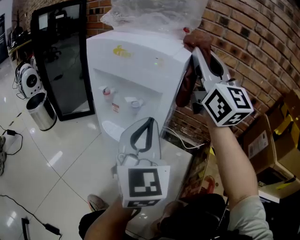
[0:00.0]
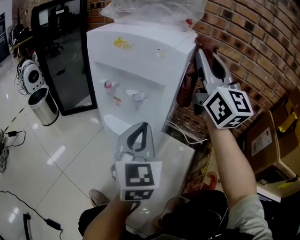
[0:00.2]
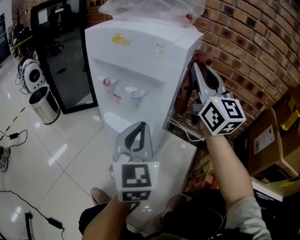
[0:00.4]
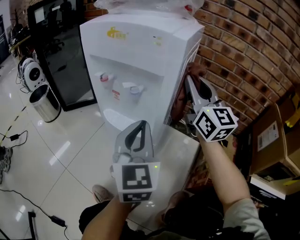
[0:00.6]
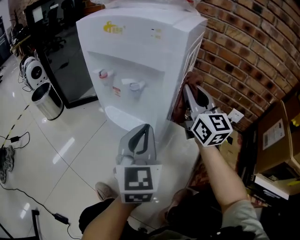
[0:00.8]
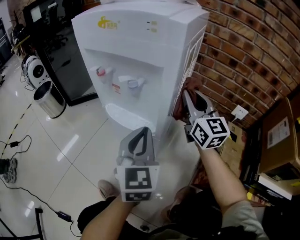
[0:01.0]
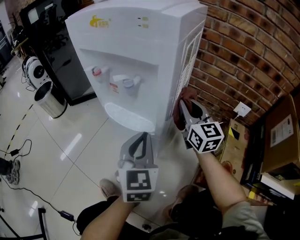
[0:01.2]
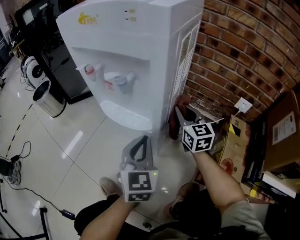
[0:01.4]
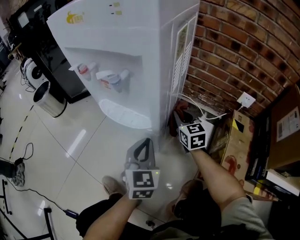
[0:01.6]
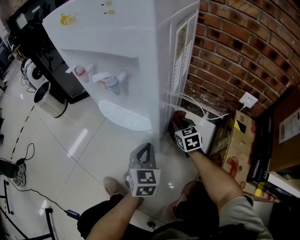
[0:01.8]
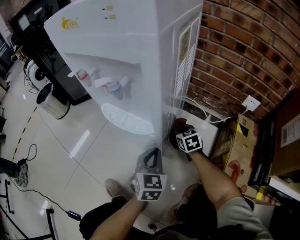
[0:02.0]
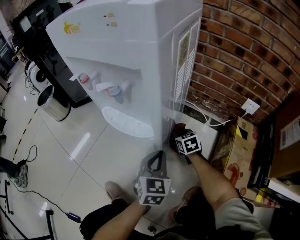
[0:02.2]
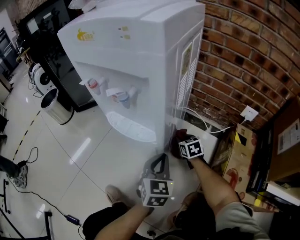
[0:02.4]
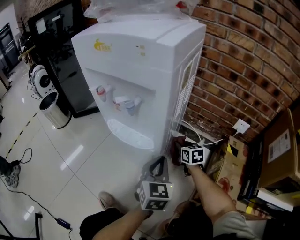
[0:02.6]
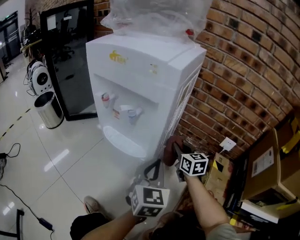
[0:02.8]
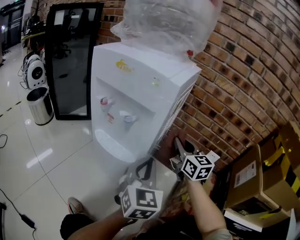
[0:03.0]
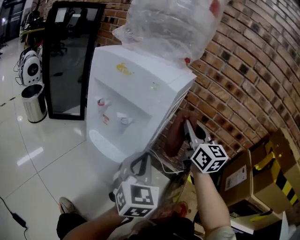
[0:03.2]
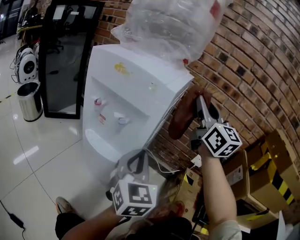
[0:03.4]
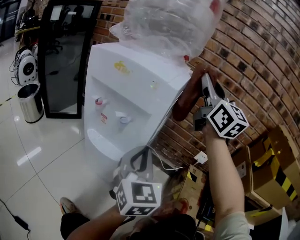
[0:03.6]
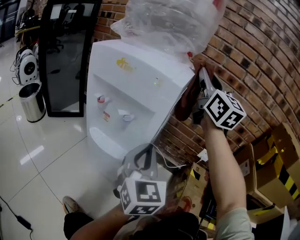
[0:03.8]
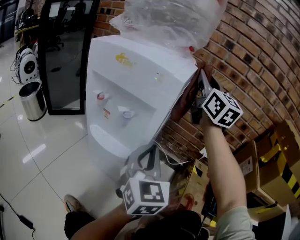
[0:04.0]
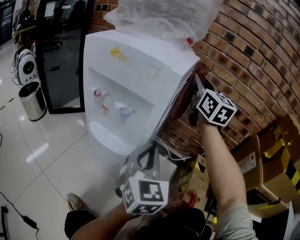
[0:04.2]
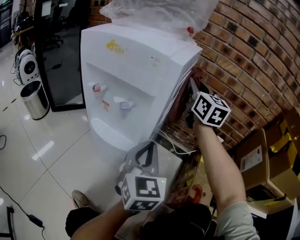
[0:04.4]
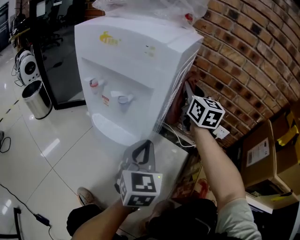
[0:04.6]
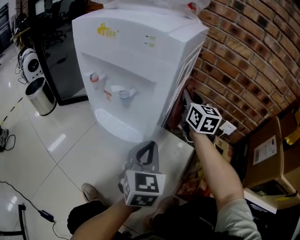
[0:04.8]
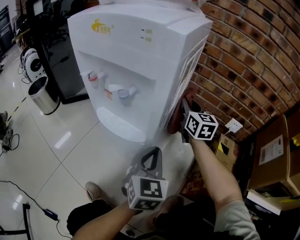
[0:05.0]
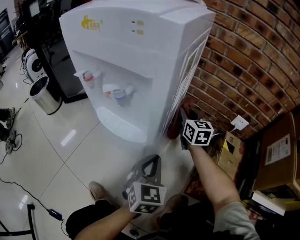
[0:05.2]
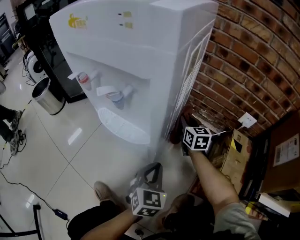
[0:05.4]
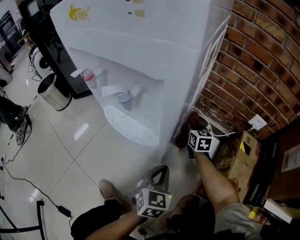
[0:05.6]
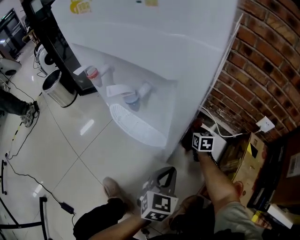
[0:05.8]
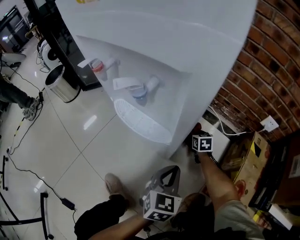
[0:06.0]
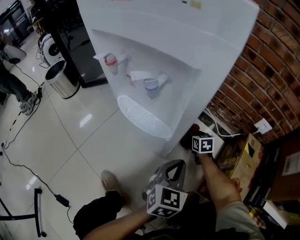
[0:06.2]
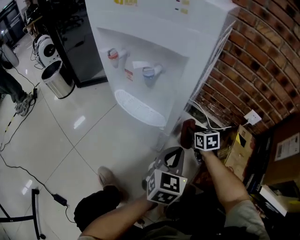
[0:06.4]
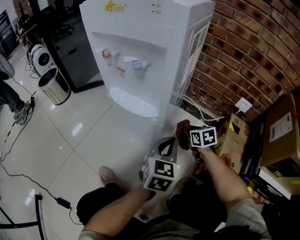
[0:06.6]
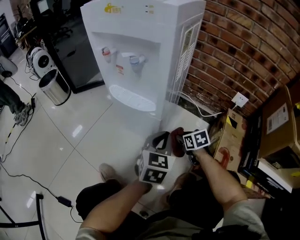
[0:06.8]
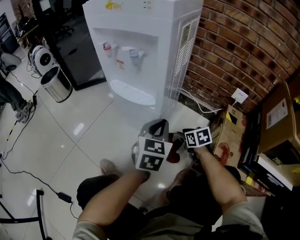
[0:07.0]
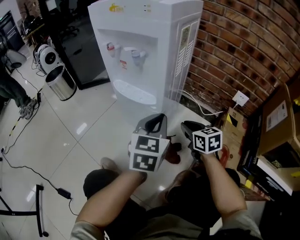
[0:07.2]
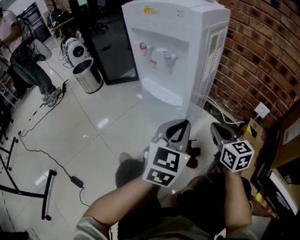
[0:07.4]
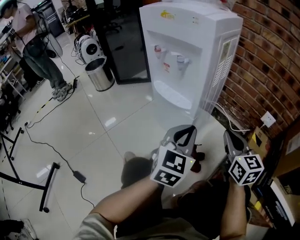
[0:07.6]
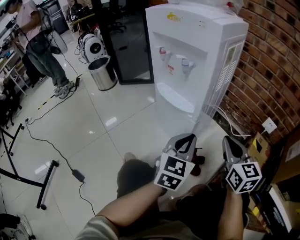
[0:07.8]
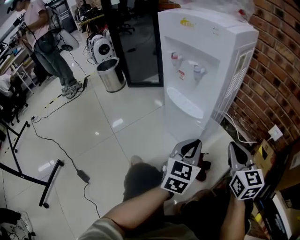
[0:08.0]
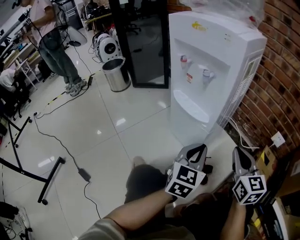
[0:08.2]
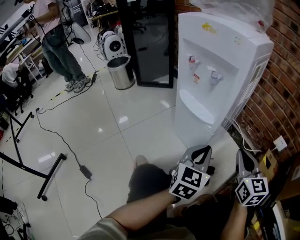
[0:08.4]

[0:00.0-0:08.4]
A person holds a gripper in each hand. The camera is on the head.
0.0 to 1.4 s: The right gripper travels downward by about 40 cm, and points its fingers some 40 degrees further downward, while the left gripper goes approximately 20 cm downward, and rotates roughly 20 degrees.
1.4 to 2.8 s: The right gripper travels downward and back again, some 20 cm each way; the left gripper moves to the right, approximately 5 cm, and moves approximately 10 cm downward and comes back.
2.8 to 4.2 s: The left gripper travels upward by roughly 10 cm. Meanwhile the right gripper travels upward by approximately 35 cm, and swivels about 30 degrees.
4.2 to 5.6 s: The right gripper moves downward, roughly 50 cm, and tips its fingers downward by some 40 degrees; the left gripper heads downward, covering some 25 cm, and swivels approximately 30 degrees.
5.6 to 7.0 s: The right gripper travels backward by about 20 cm, turns by roughly 30 degrees, and opens its fingers; the left gripper goes roughly 10 cm upward.
7.0 to 8.4 s: The left gripper travels backward by approximately 5 cm; the right gripper shifts approximately 25 cm upward, tips its fingers upward by some 40 degrees, and closes its fingers.

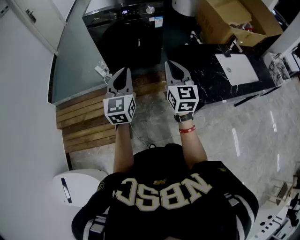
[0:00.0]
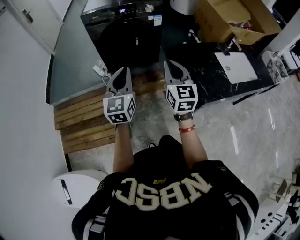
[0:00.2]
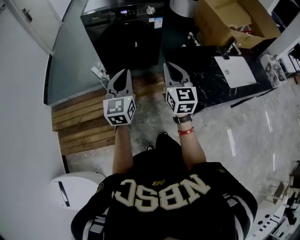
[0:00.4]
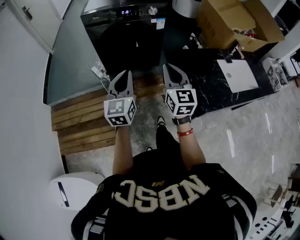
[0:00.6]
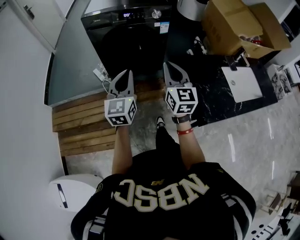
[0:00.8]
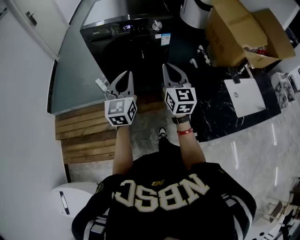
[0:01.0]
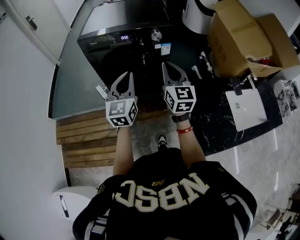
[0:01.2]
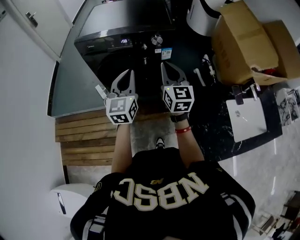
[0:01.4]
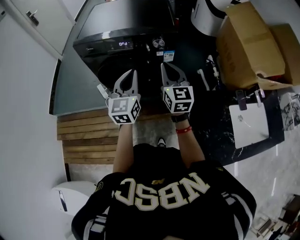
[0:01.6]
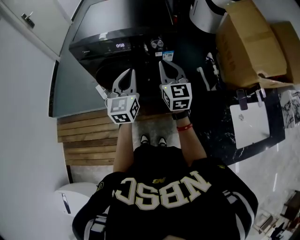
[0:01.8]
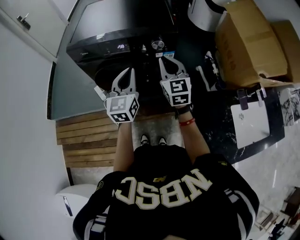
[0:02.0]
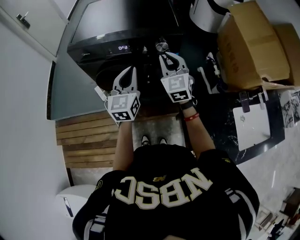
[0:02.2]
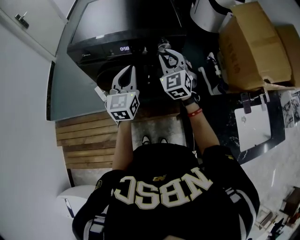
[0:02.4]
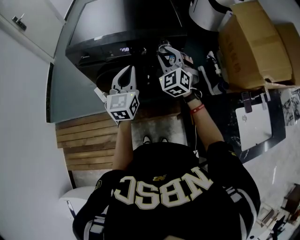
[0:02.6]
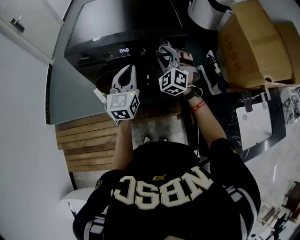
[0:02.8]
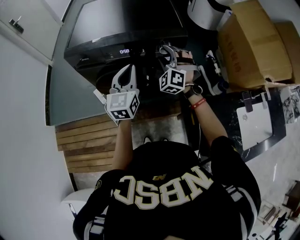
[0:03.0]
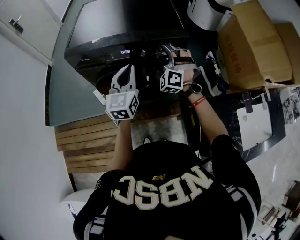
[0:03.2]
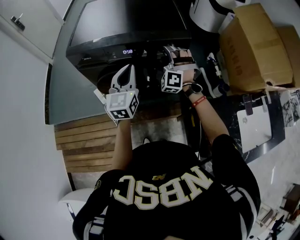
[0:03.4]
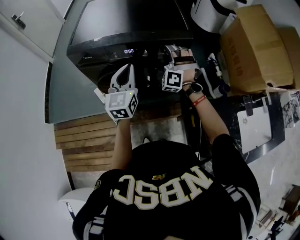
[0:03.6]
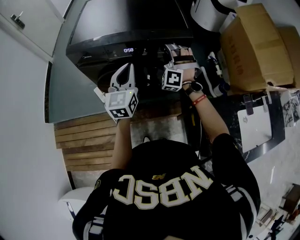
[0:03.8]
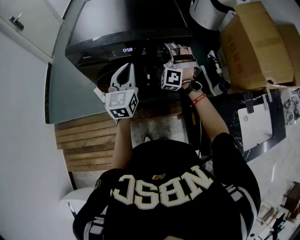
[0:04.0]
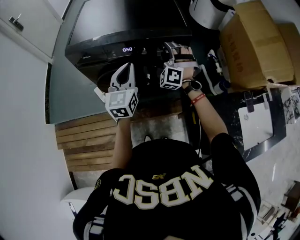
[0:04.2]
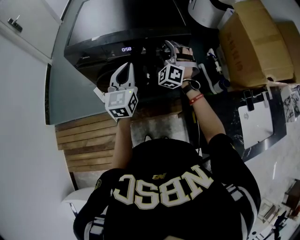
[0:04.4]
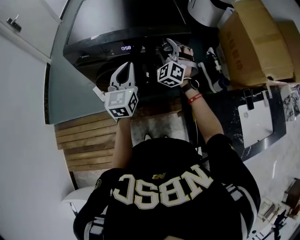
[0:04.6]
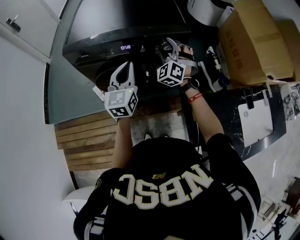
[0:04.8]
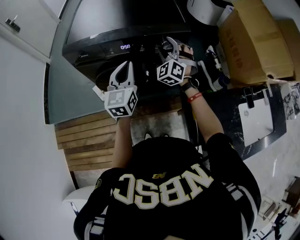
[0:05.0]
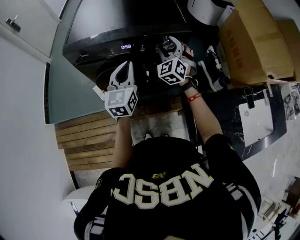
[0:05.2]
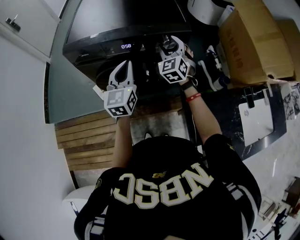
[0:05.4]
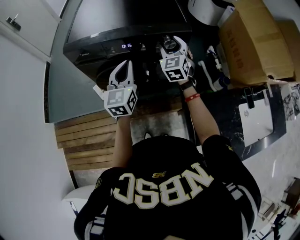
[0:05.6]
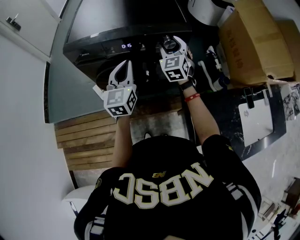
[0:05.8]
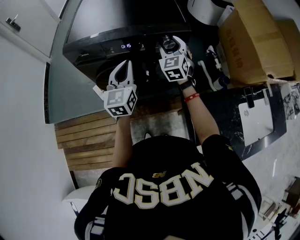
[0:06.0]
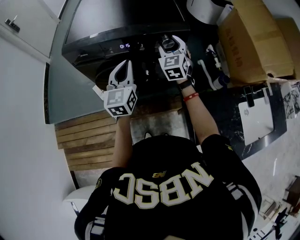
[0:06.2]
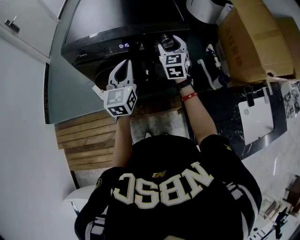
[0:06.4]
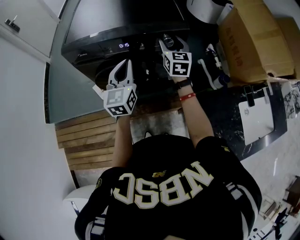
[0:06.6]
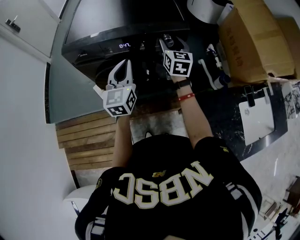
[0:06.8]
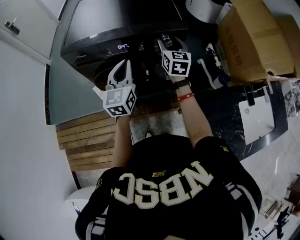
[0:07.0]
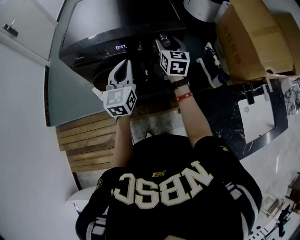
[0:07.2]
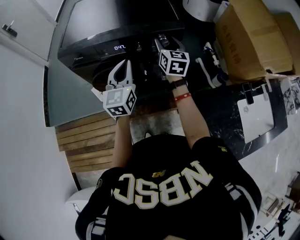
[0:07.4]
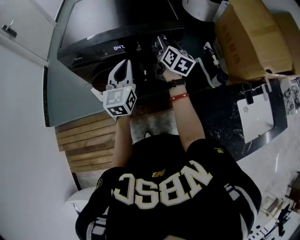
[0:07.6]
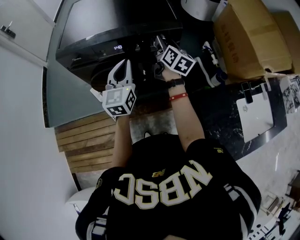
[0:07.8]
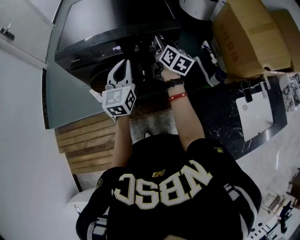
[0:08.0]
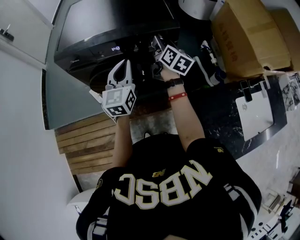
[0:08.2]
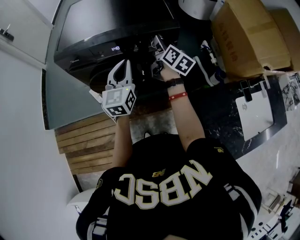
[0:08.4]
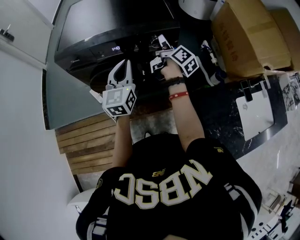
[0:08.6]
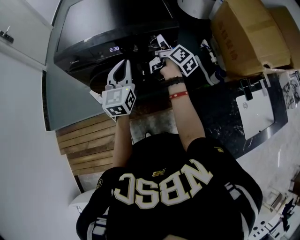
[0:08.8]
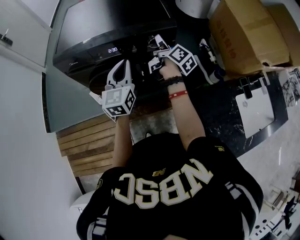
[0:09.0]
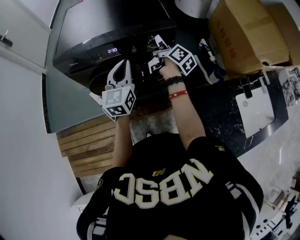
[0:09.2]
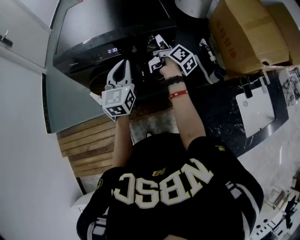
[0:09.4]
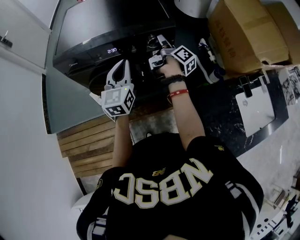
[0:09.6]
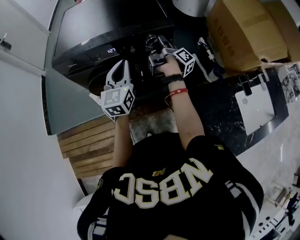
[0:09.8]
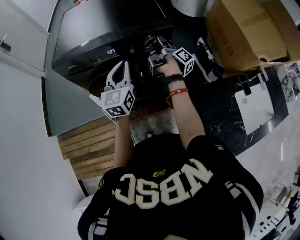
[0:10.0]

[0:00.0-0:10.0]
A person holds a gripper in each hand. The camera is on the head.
0.0 to 1.4 s: Both grippers move forward, some 30 cm.
1.4 to 2.8 s: The two grippers go some 15 cm forward. The right gripper rotates around the line of its fingers by roughly 60 degrees, counterclockwise from behind, and opens up.
2.8 to 4.2 s: The right gripper turns by about 20 degrees.
4.2 to 5.8 s: The right gripper twists about 50 degrees clockwise, seen from behind.
5.8 to 7.2 s: The right gripper rotates some 30 degrees.
7.2 to 8.6 s: The right gripper rolls clockwise, seen from behind, by roughly 60 degrees.
8.6 to 10.0 s: The right gripper rotates about 30 degrees.

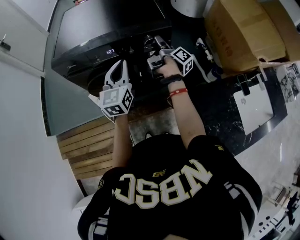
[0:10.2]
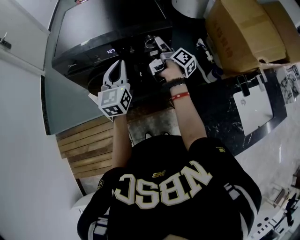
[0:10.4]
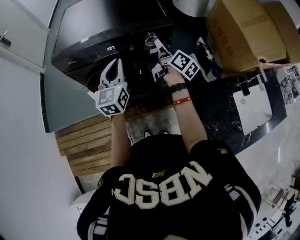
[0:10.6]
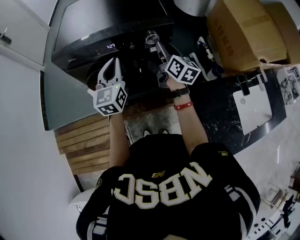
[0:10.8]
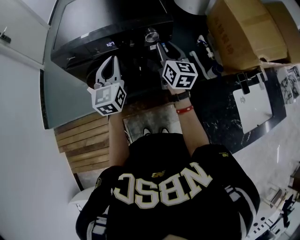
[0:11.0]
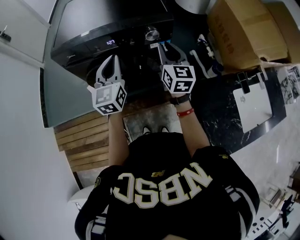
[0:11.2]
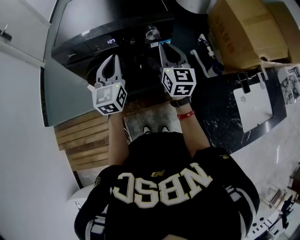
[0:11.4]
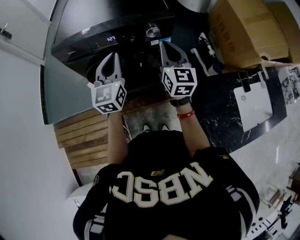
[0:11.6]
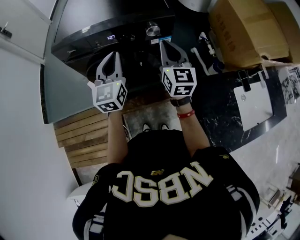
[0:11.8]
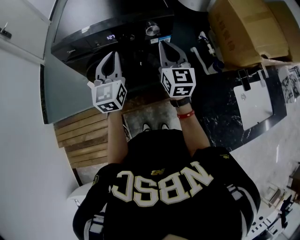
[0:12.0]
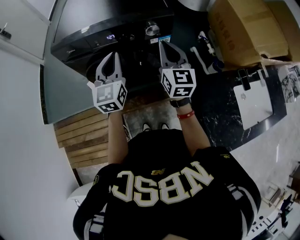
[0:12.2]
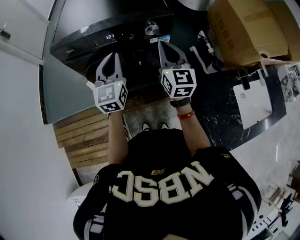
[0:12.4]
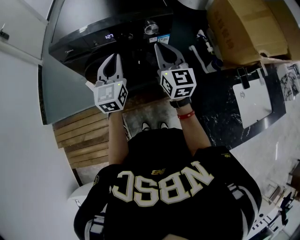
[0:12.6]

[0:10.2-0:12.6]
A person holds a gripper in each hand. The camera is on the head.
10.2 to 11.4 s: The right gripper goes approximately 15 cm backward and upward, rolls counterclockwise, seen from behind, by about 90 degrees, and closes.
11.4 to 12.6 s: The grippers stay close to where they were, moving slightly.

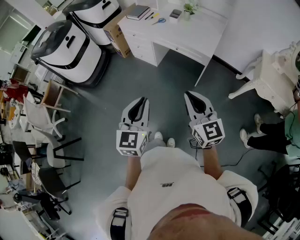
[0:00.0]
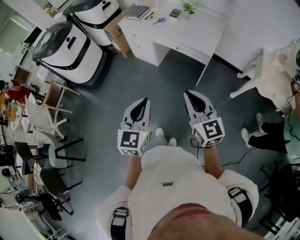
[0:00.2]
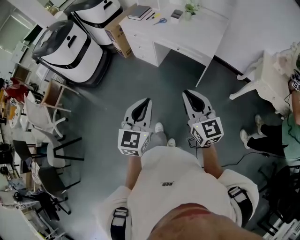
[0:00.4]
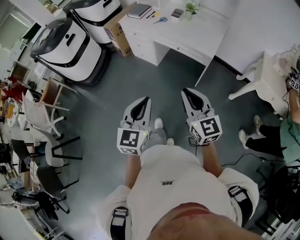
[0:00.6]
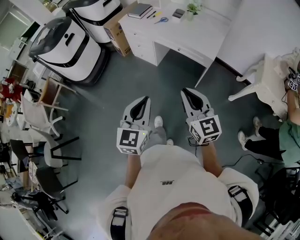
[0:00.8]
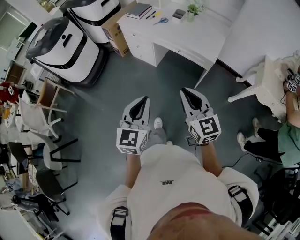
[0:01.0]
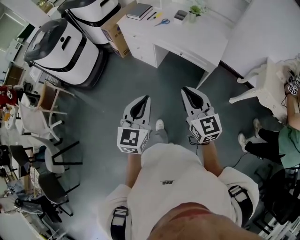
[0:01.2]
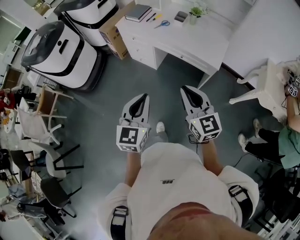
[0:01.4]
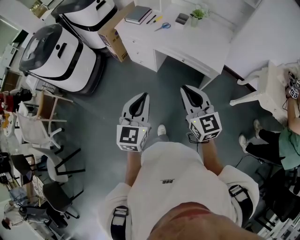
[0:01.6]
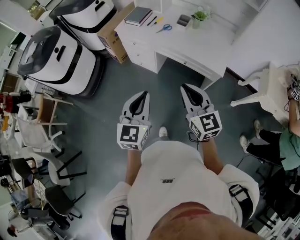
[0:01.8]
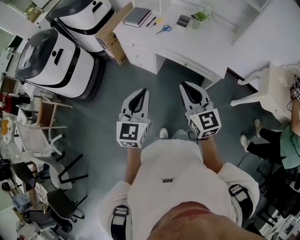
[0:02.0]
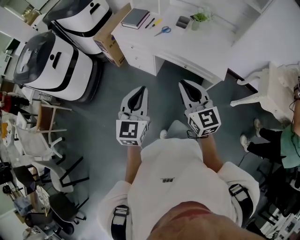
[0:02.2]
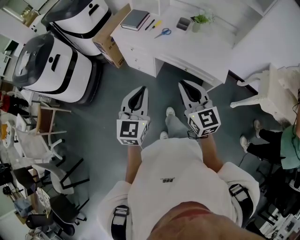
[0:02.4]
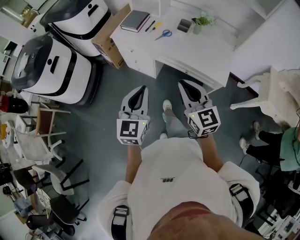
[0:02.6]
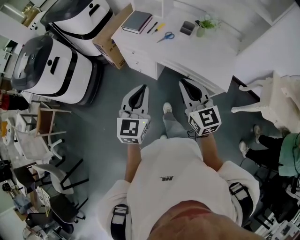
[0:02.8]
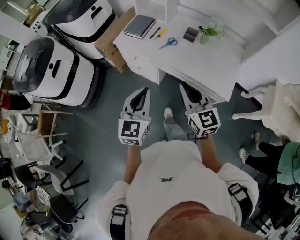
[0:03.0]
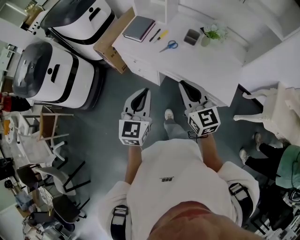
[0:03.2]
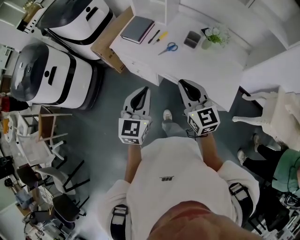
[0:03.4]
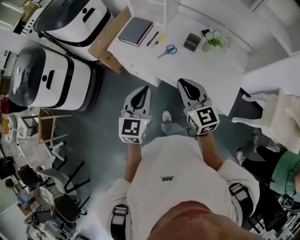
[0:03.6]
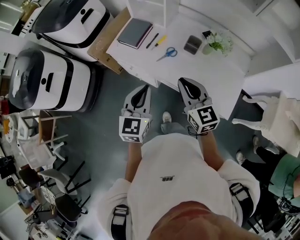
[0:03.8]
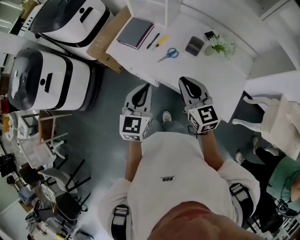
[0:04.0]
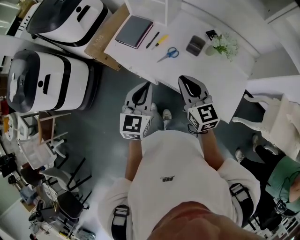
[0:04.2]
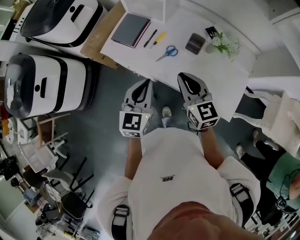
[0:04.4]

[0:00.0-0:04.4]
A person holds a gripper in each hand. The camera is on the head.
0.0 to 1.4 s: The grippers both shift forward by approximately 20 cm.
1.4 to 3.0 s: The grippers both shift forward by roughly 30 cm.
3.0 to 4.4 s: The two grippers go roughly 25 cm forward.
